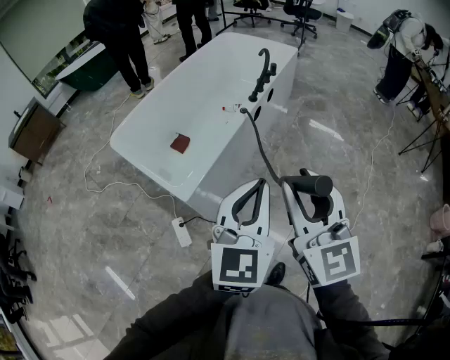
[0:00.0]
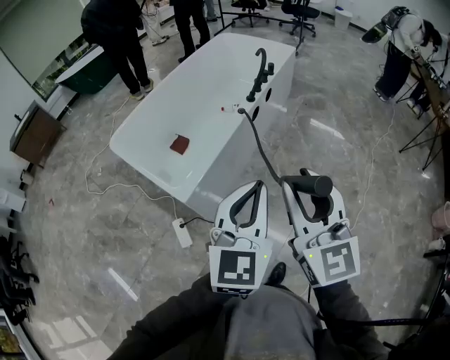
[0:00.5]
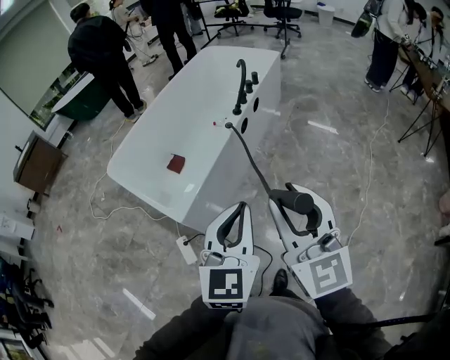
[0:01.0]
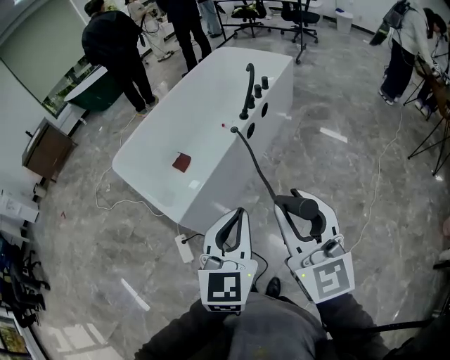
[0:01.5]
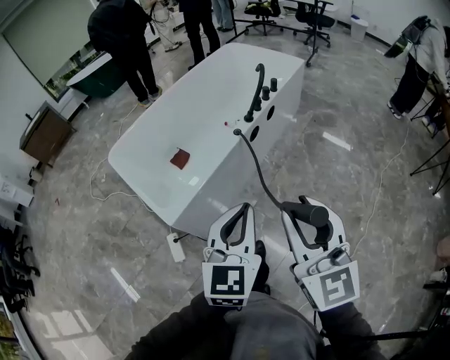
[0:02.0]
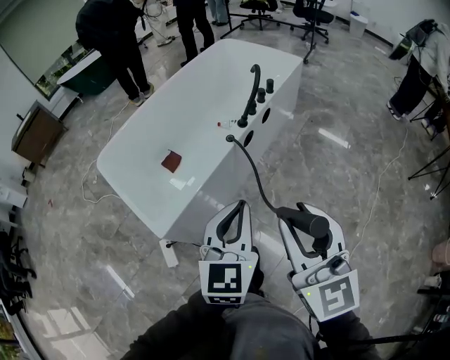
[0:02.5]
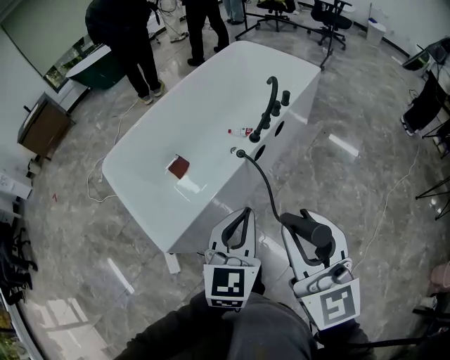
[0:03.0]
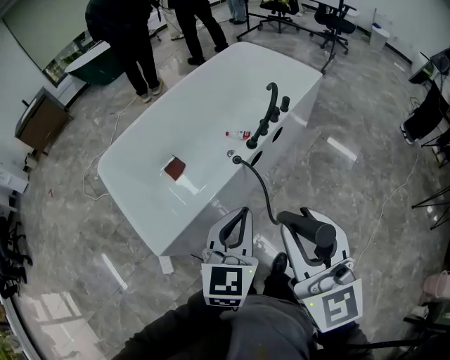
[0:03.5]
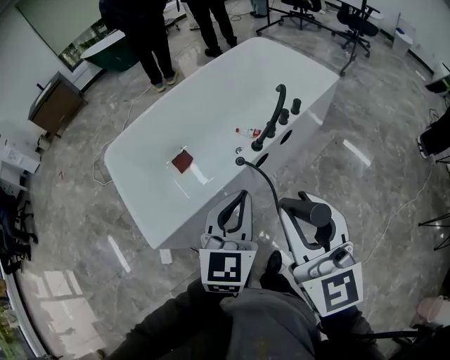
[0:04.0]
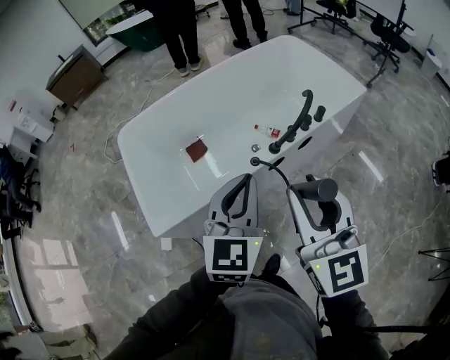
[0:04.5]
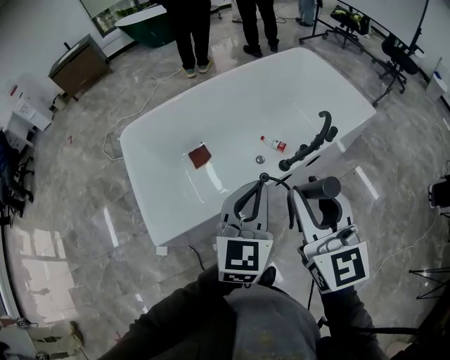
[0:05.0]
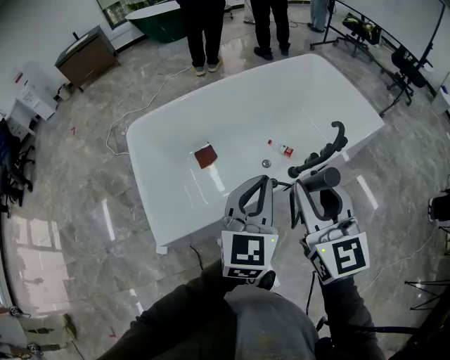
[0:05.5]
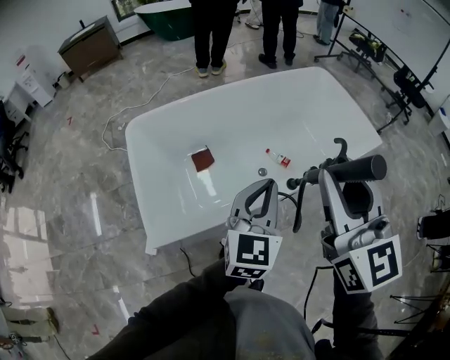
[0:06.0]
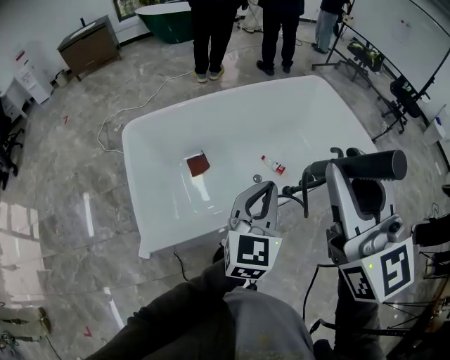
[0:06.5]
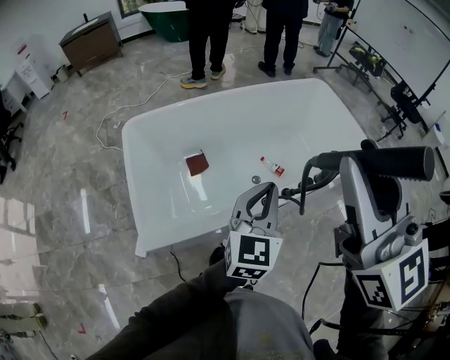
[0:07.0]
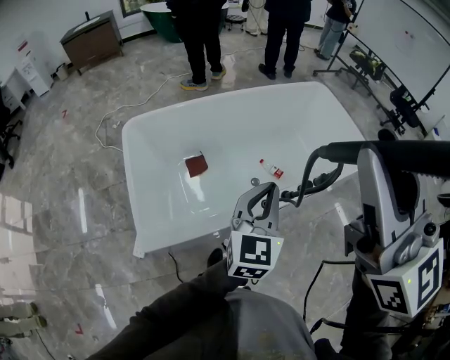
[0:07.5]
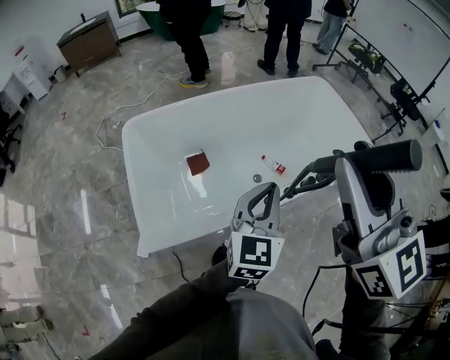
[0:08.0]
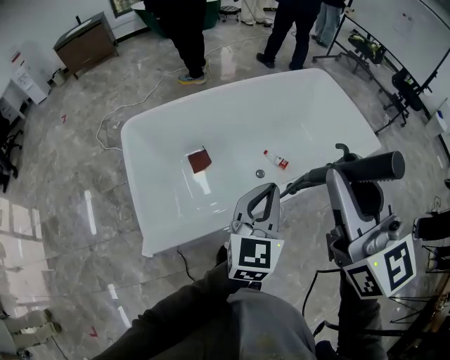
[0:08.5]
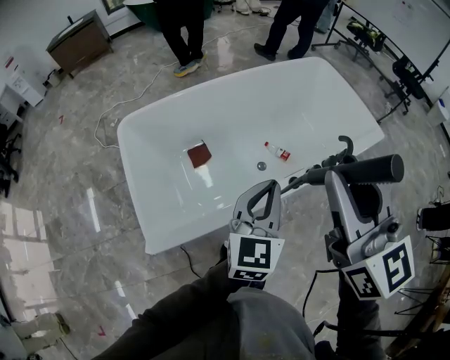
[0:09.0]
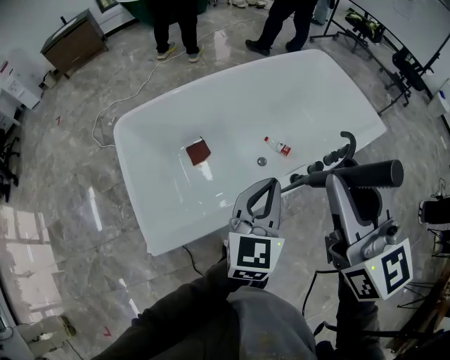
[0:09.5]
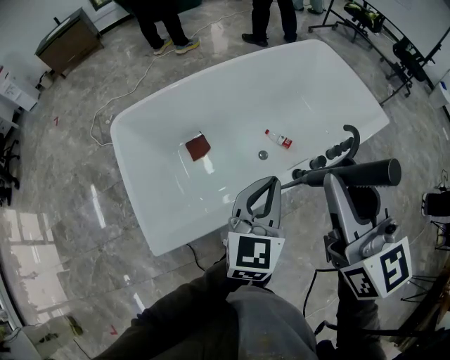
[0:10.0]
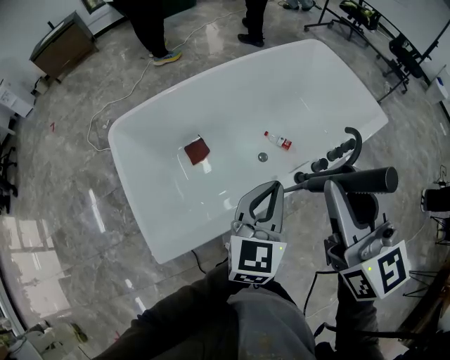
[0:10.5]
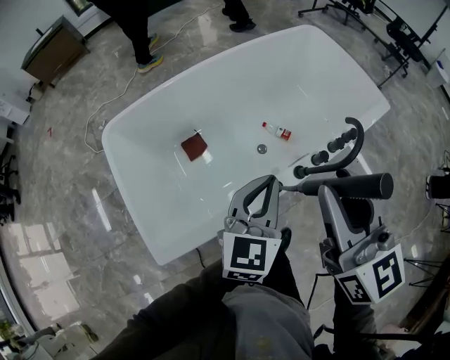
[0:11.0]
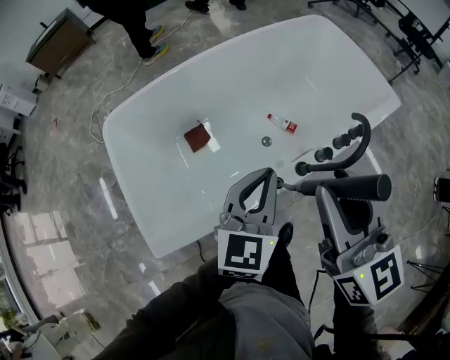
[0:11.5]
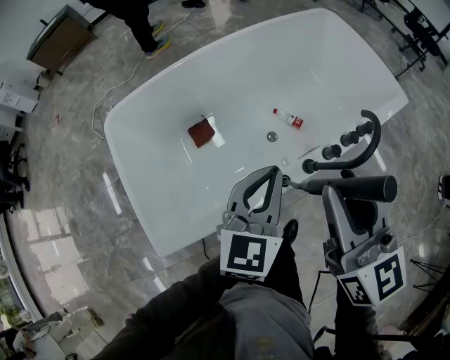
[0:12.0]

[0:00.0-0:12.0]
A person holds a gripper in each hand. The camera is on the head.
0:00.0 to 0:02.0: The right gripper moves to the right and forward, roughly 15 cm. The left gripper goes approximately 15 cm forward, to the right and downward.
0:02.0 to 0:04.0: The grippers both shift forward by roughly 25 cm.
0:04.0 to 0:06.0: The left gripper goes roughly 15 cm forward and to the left. The right gripper moves forward, approximately 20 cm.
0:06.0 to 0:08.0: The right gripper shifts about 5 cm upward.
0:08.0 to 0:10.0: The left gripper shifts by about 5 cm, while the right gripper heads downward and forward, covering some 10 cm.
0:10.0 to 0:12.0: The left gripper travels forward by some 5 cm. The right gripper is displaced downward by about 10 cm.

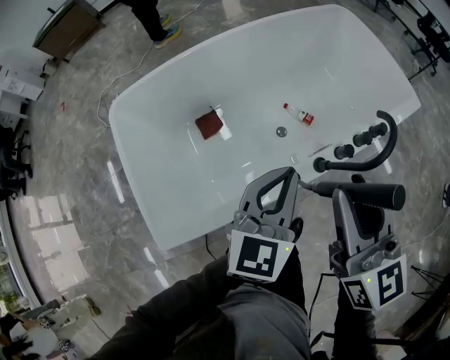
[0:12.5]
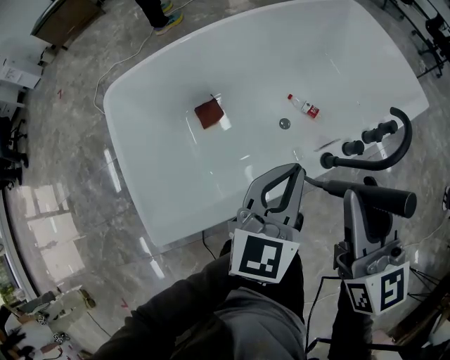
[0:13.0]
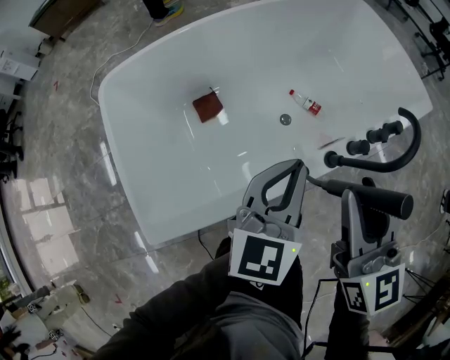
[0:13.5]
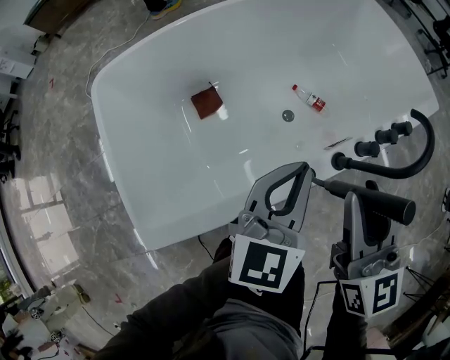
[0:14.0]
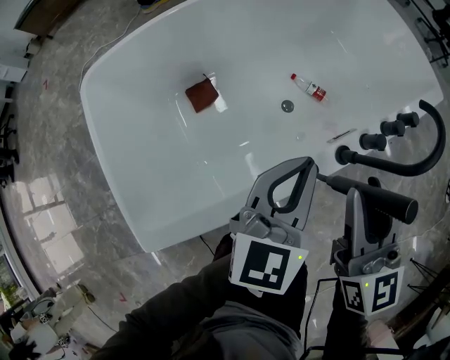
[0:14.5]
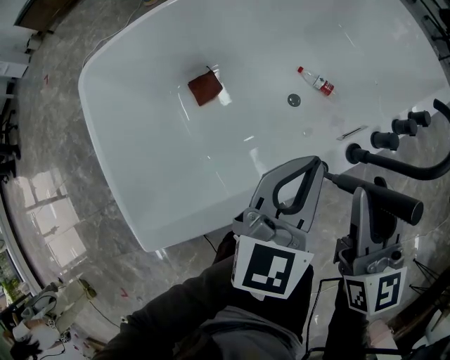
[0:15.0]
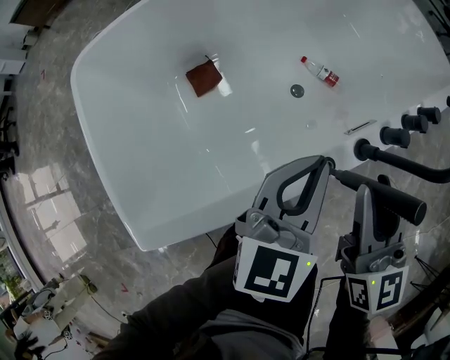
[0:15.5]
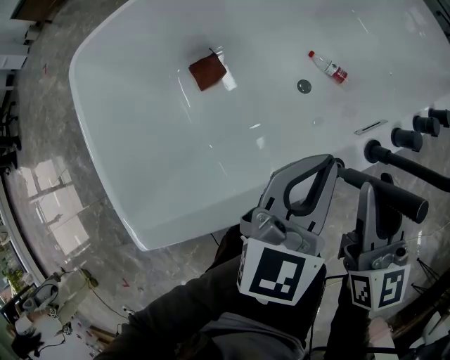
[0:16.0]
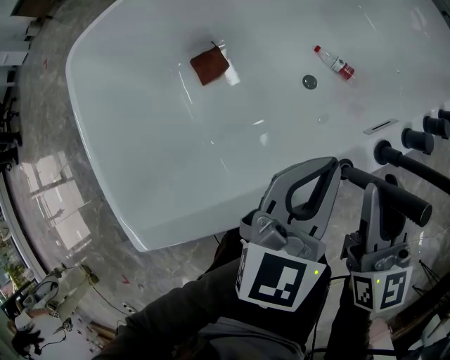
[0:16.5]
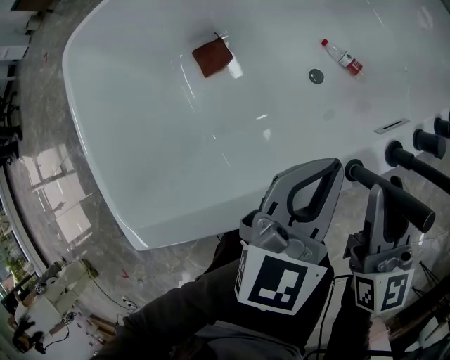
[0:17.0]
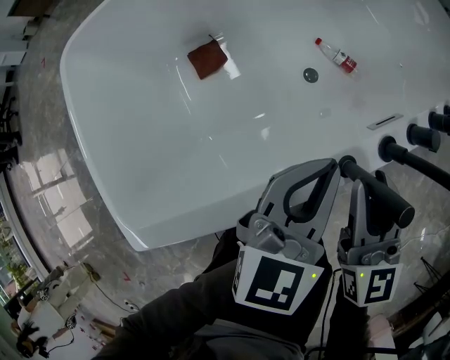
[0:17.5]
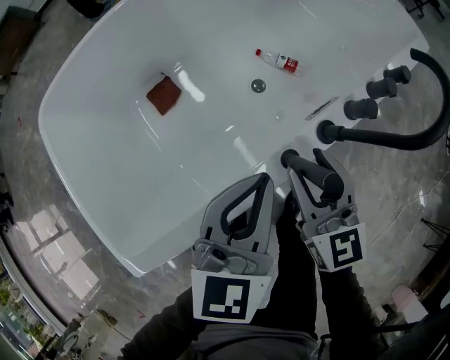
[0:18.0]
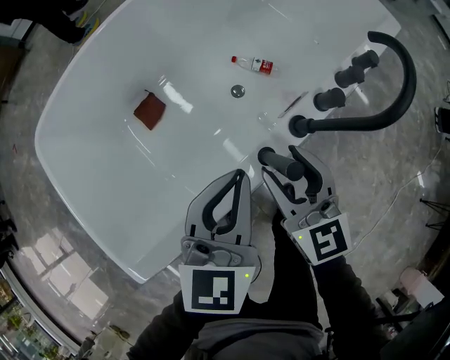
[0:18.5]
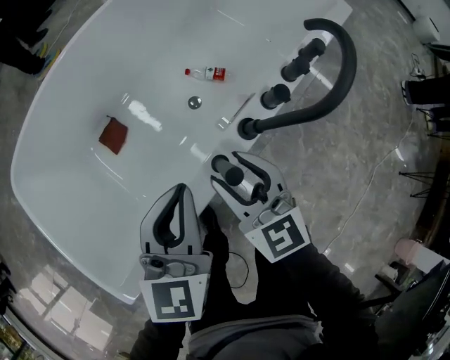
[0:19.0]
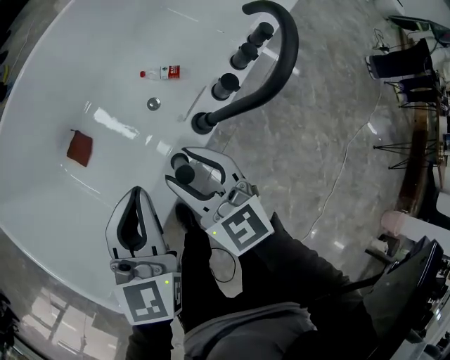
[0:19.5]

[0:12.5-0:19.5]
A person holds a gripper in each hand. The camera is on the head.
0:12.5 to 0:14.5: Both grippers move downward, roughly 10 cm.
0:14.5 to 0:16.0: The grippers both shift downward by about 10 cm.
0:16.0 to 0:17.5: The right gripper heads downward, covering some 5 cm.
0:17.5 to 0:19.5: The left gripper shifts some 5 cm upward.

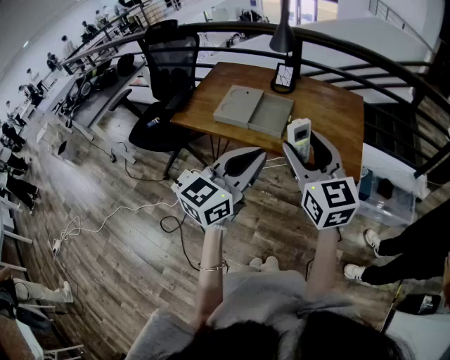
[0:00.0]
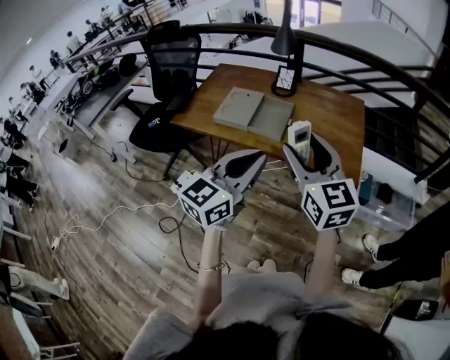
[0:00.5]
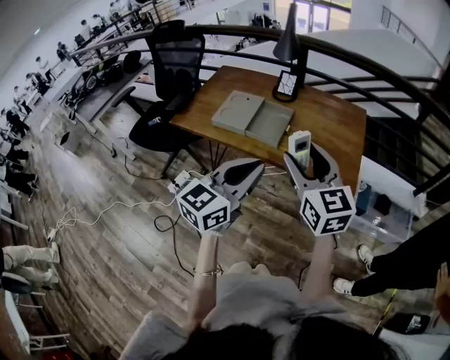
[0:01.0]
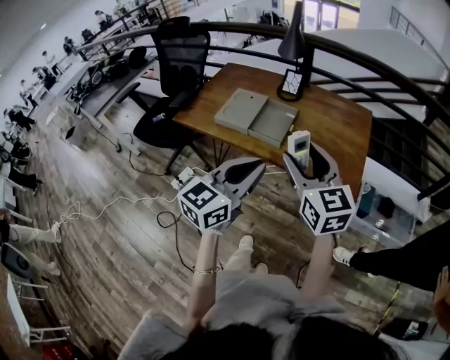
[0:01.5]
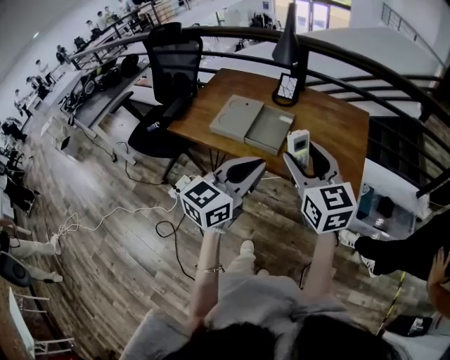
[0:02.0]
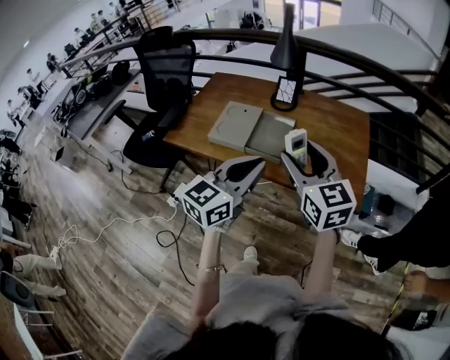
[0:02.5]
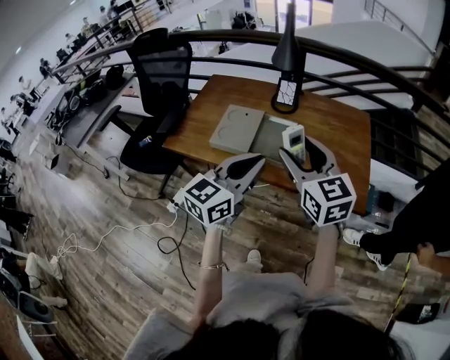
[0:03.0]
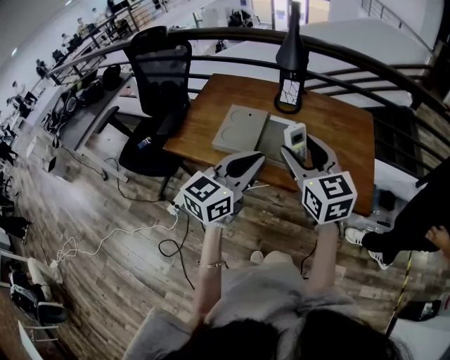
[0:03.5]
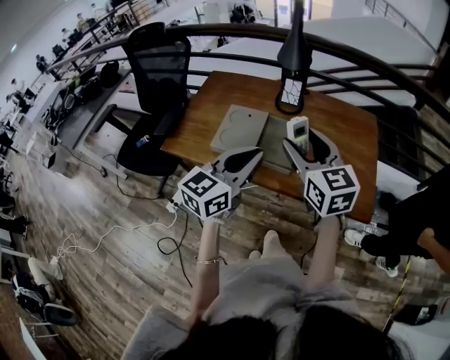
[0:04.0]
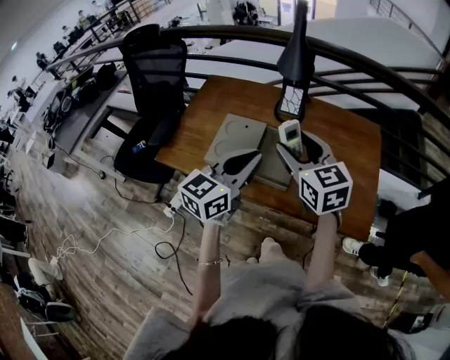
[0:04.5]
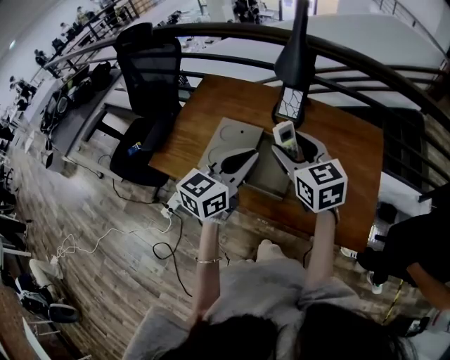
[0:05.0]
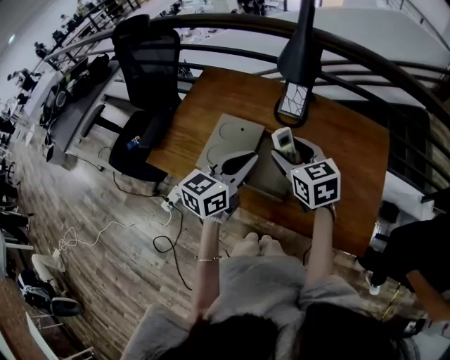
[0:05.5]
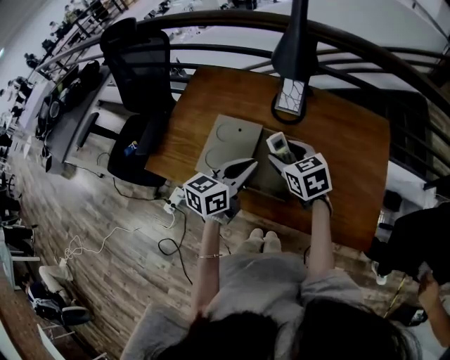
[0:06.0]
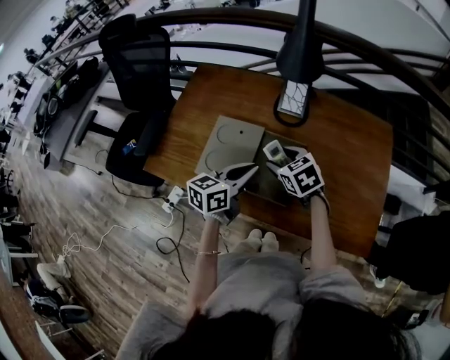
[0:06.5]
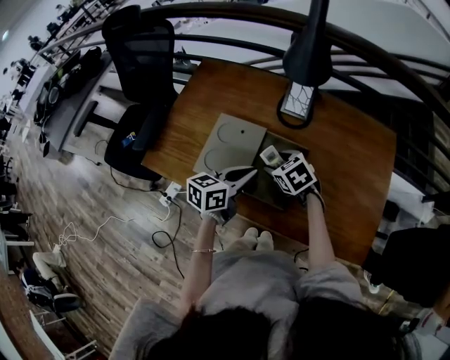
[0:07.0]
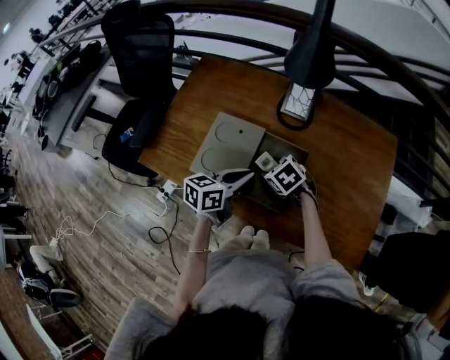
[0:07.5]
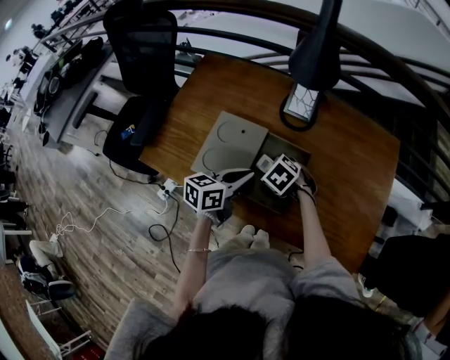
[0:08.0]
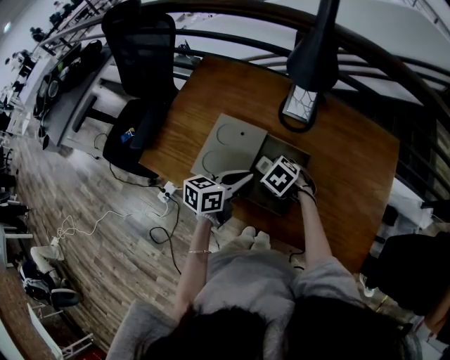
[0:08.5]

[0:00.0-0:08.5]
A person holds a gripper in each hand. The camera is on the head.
0:00.0 to 0:02.0: Both grippers move forward, approximately 10 cm.
0:02.0 to 0:04.0: Both grippers move forward and to the left, some 15 cm.
0:04.0 to 0:06.5: The right gripper moves downward and forward, approximately 30 cm, and angles its fingers downward, by approximately 40 degrees; the left gripper shifts some 25 cm forward and downward, and swivels about 30 degrees.
0:06.5 to 0:08.5: The right gripper is displaced downward by approximately 10 cm, and swivels some 30 degrees.
